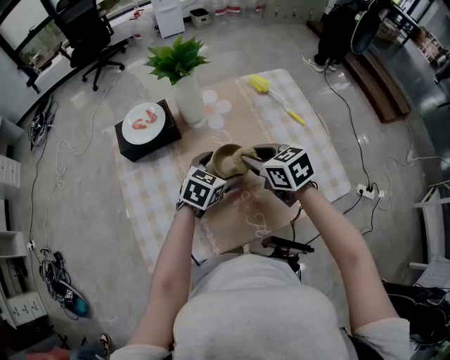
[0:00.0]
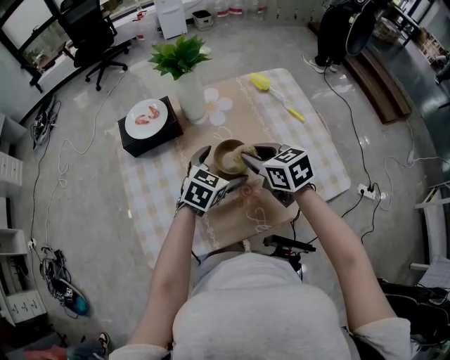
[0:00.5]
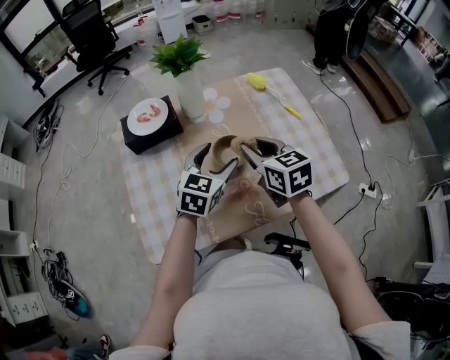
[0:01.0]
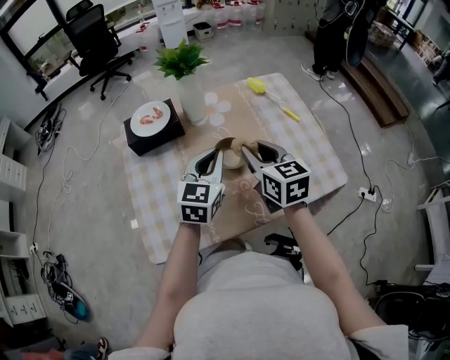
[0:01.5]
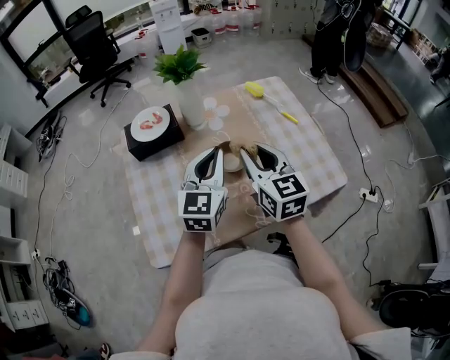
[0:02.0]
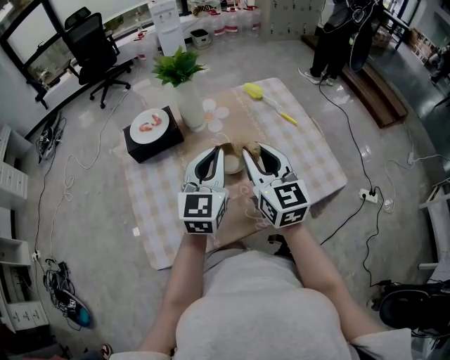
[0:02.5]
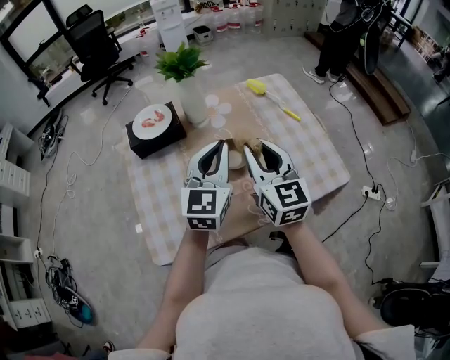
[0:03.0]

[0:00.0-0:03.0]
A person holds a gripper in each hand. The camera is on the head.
0:00.0 to 0:01.5: The right gripper heads upward, covering approximately 5 cm, and swivels roughly 30 degrees, while the left gripper shifts about 10 cm upward, rotates roughly 30 degrees, and closes up.
0:01.5 to 0:03.0: The right gripper changes place by roughly 5 cm, while the left gripper moves upward, approximately 5 cm.

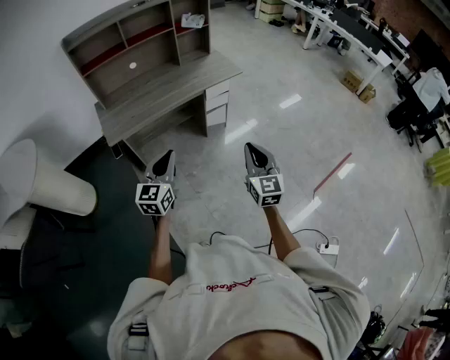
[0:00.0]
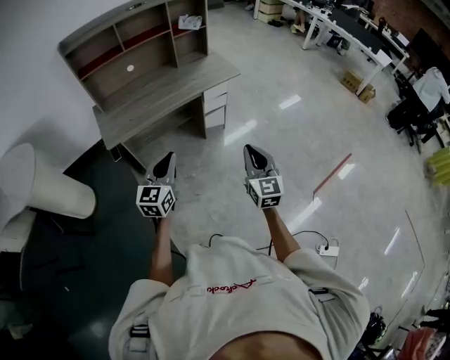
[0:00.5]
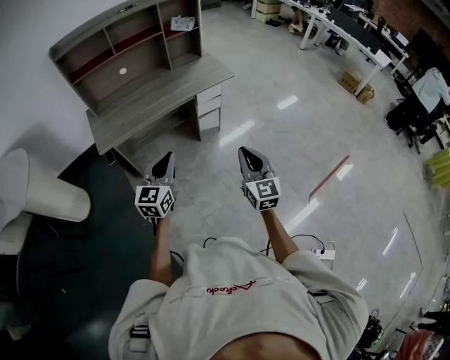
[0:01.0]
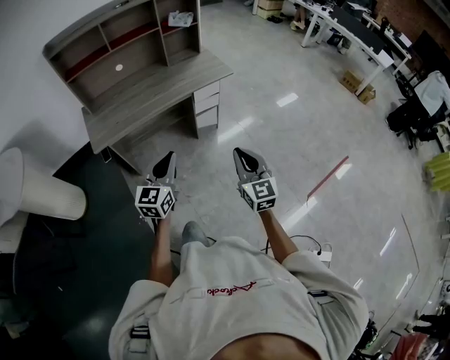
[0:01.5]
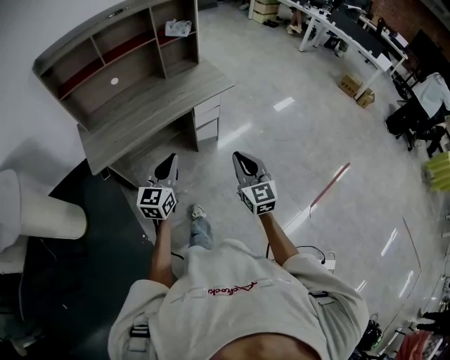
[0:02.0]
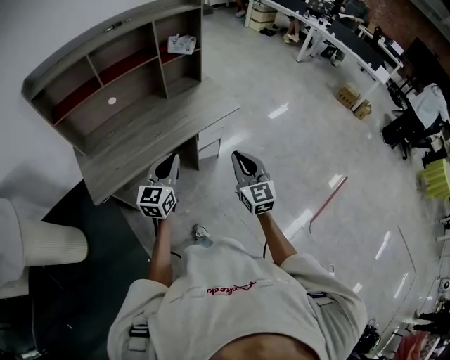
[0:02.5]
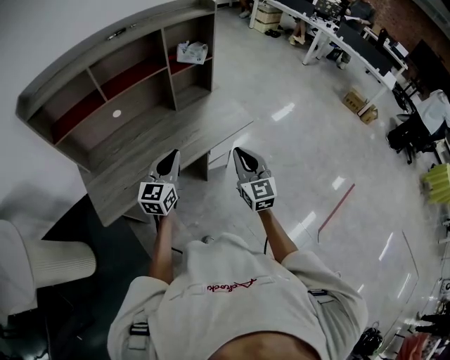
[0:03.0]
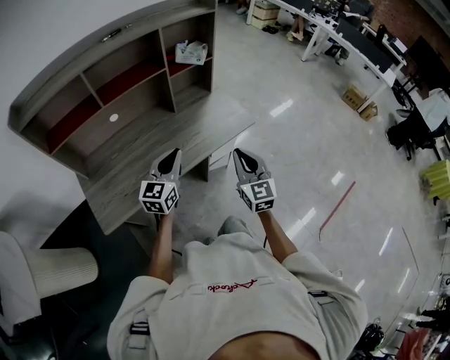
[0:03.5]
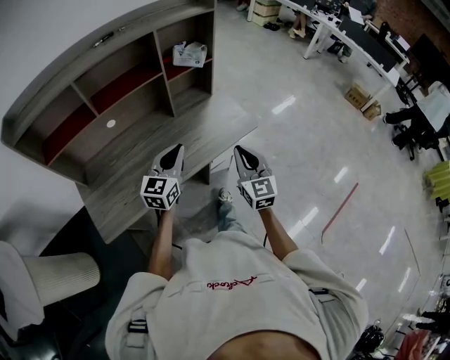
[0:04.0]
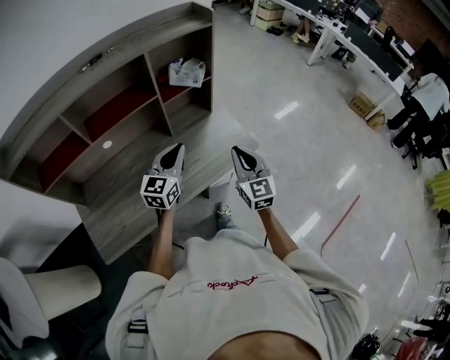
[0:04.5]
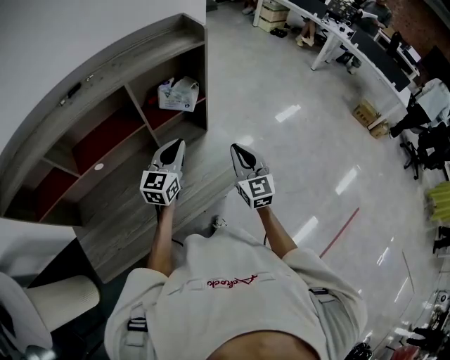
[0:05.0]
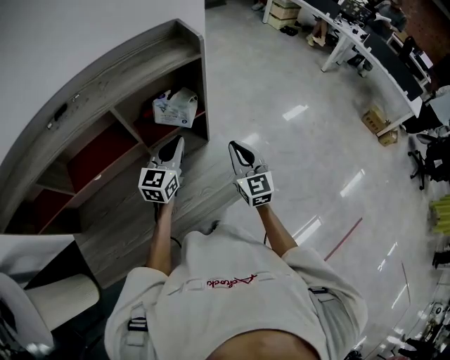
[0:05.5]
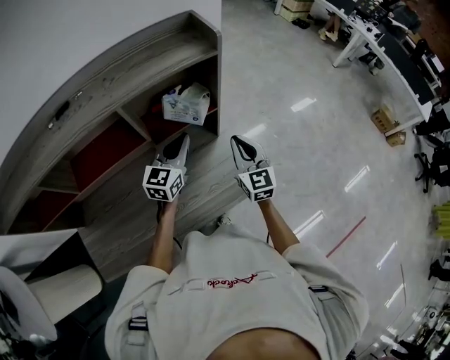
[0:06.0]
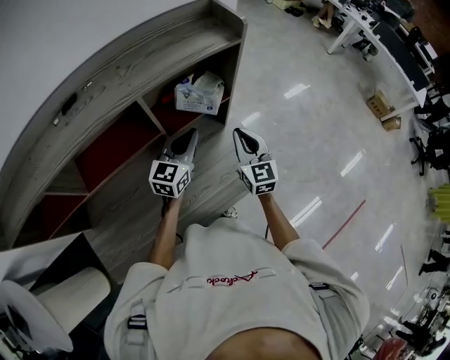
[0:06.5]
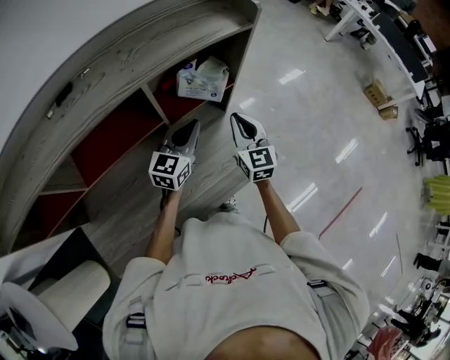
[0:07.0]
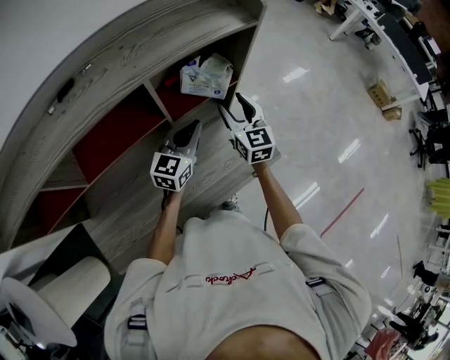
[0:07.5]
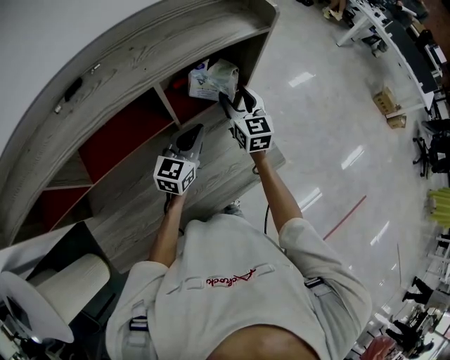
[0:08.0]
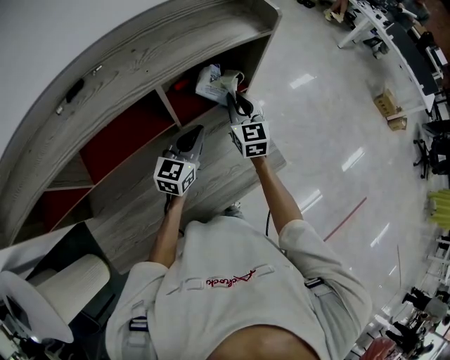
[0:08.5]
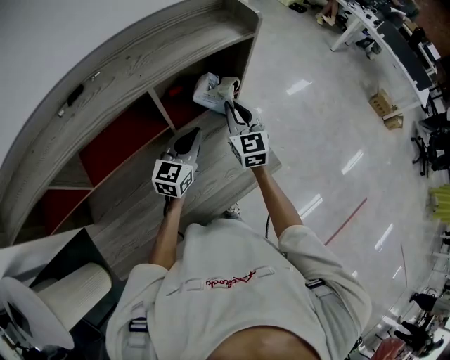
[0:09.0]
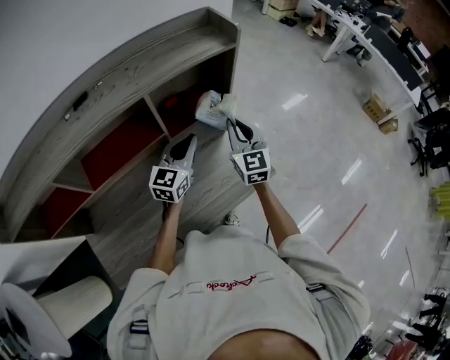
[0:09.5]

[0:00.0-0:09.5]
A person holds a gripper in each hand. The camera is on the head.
0:00.0 to 0:02.0: Both grippers travel together forward, roughly 15 cm.
0:02.0 to 0:04.0: The grippers both shift forward by roughly 35 cm.
0:04.0 to 0:05.5: The two grippers go about 35 cm forward.
0:05.5 to 0:07.5: The left gripper shifts some 10 cm to the left and downward. The right gripper heads to the left and forward, covering roughly 15 cm, and opens its fingers.
0:07.5 to 0:09.5: The right gripper heads upward, covering some 5 cm, and closes.

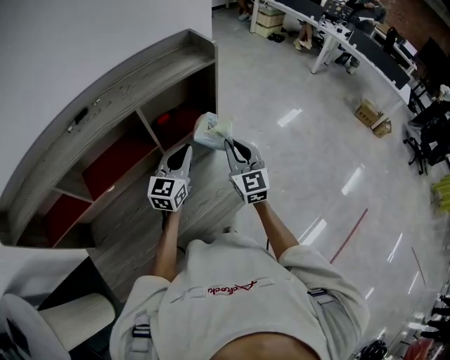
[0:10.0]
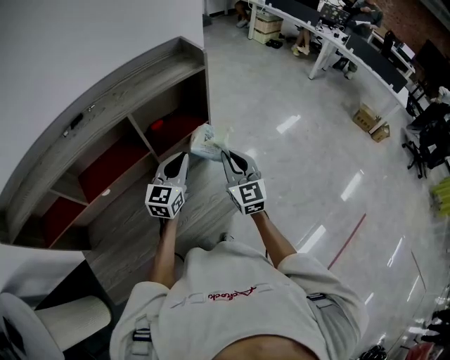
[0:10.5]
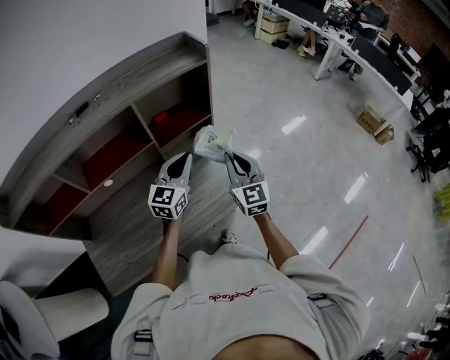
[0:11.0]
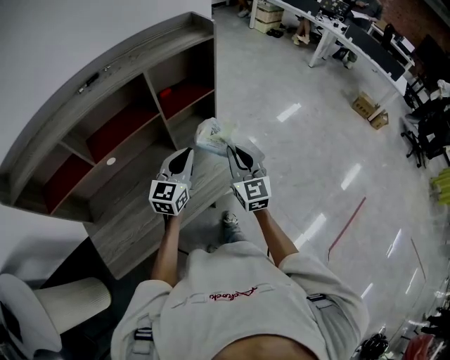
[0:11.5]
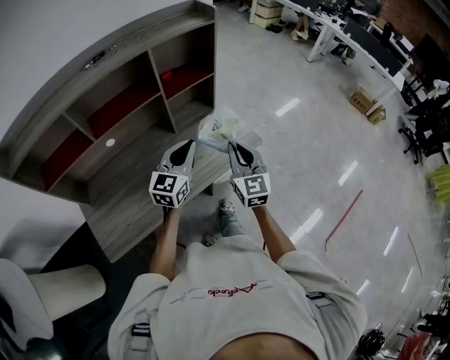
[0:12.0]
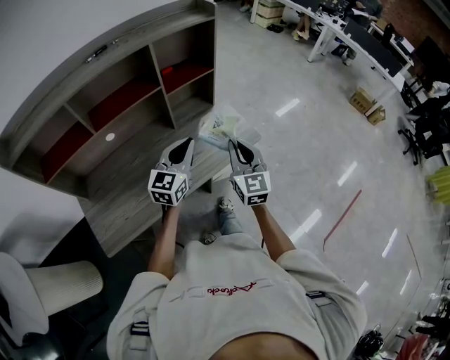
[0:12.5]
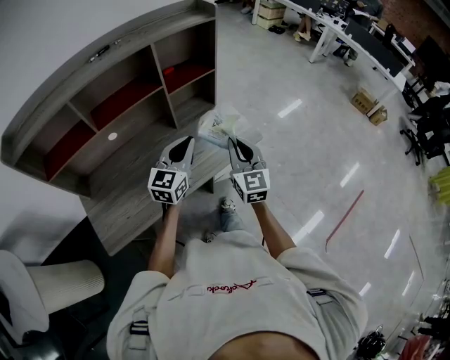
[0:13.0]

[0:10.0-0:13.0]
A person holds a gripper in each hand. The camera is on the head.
0:10.0 to 0:11.5: Both grippers move backward, about 15 cm.
0:11.5 to 0:13.0: The two grippers go approximately 10 cm backward.

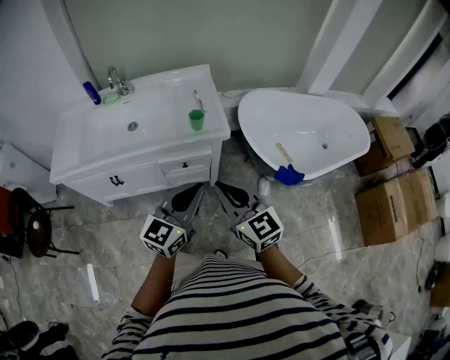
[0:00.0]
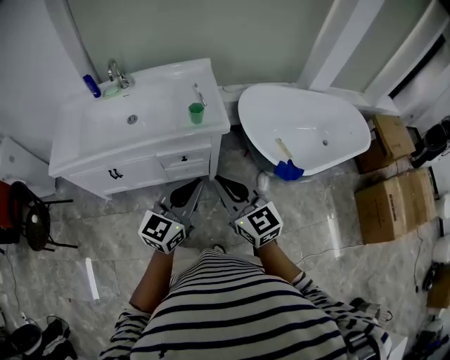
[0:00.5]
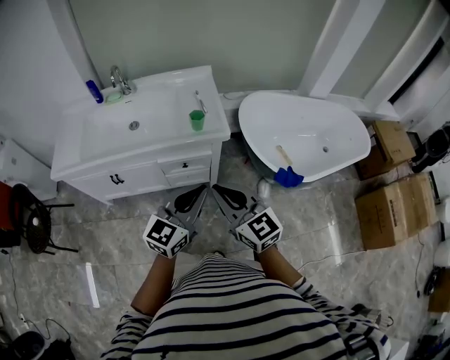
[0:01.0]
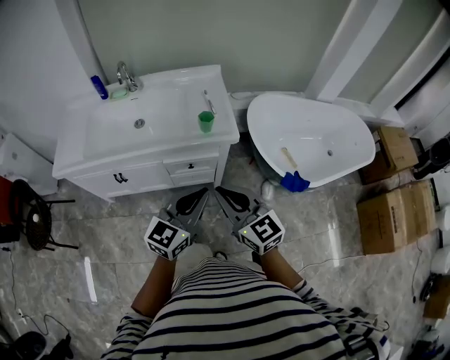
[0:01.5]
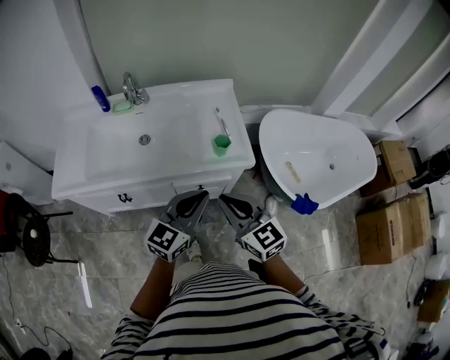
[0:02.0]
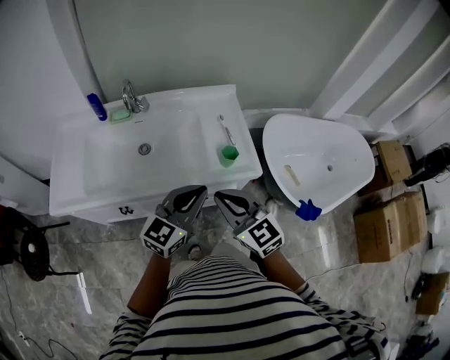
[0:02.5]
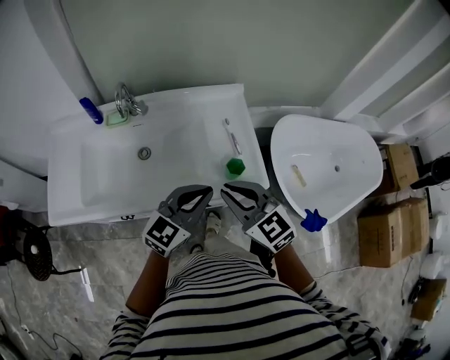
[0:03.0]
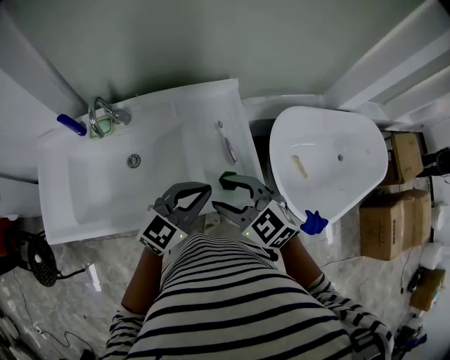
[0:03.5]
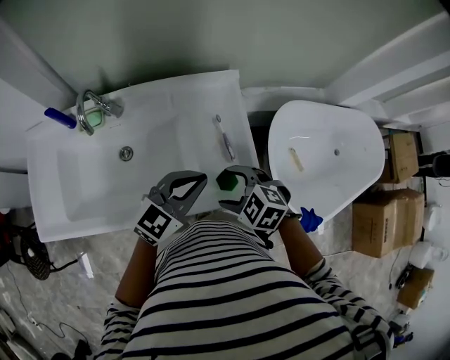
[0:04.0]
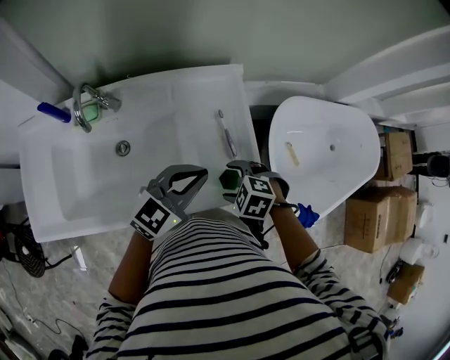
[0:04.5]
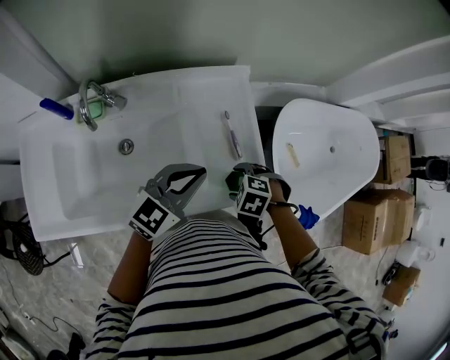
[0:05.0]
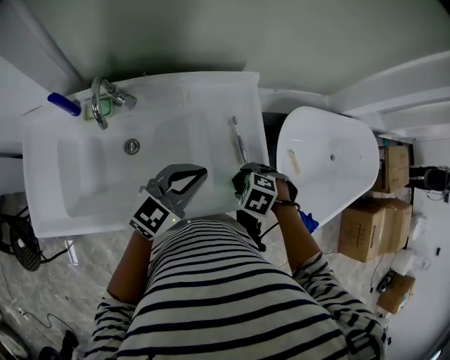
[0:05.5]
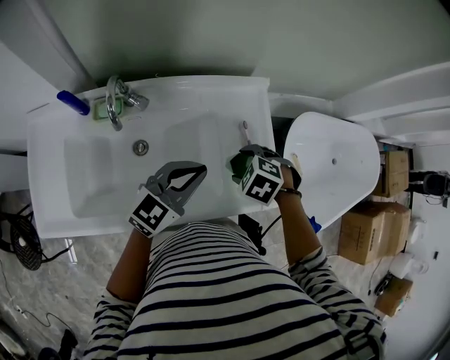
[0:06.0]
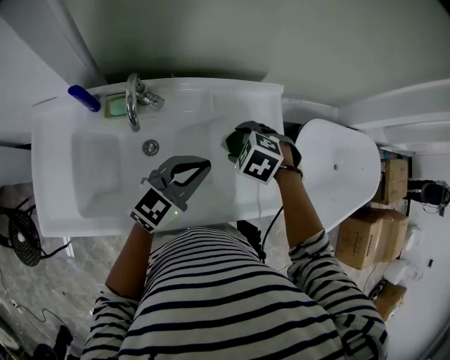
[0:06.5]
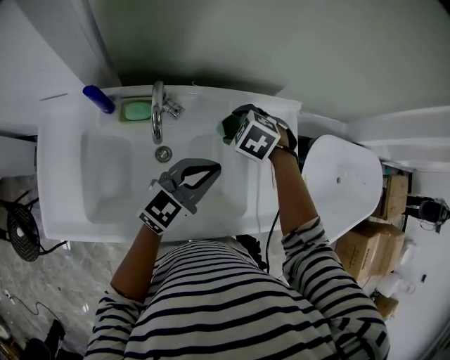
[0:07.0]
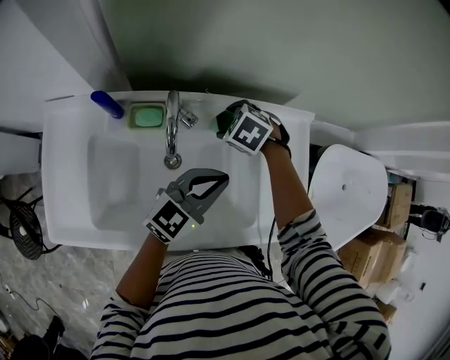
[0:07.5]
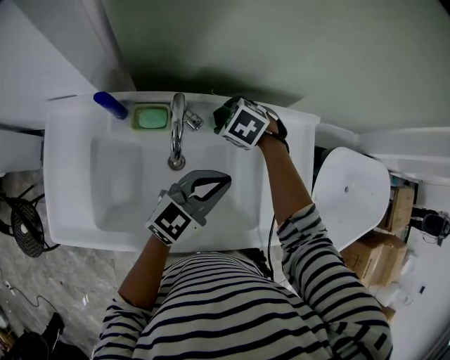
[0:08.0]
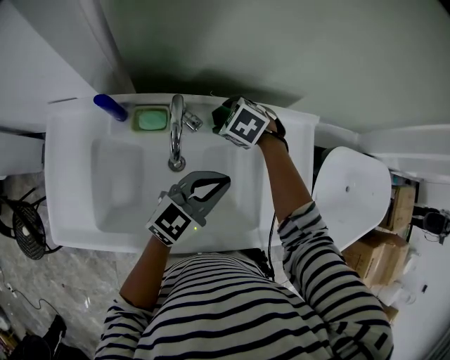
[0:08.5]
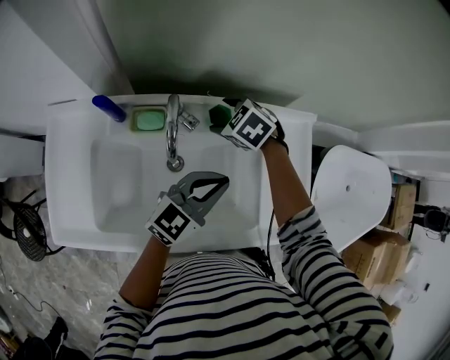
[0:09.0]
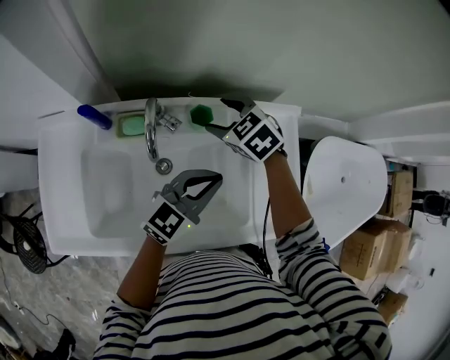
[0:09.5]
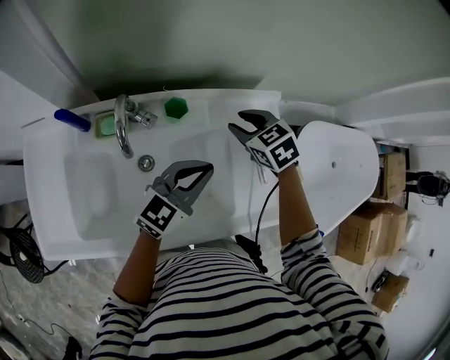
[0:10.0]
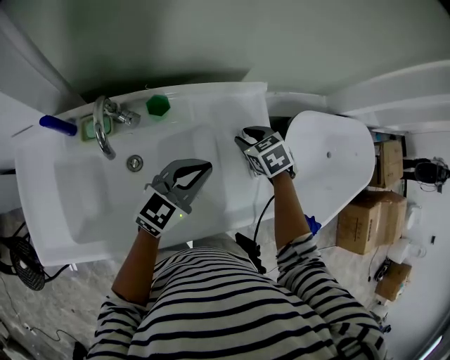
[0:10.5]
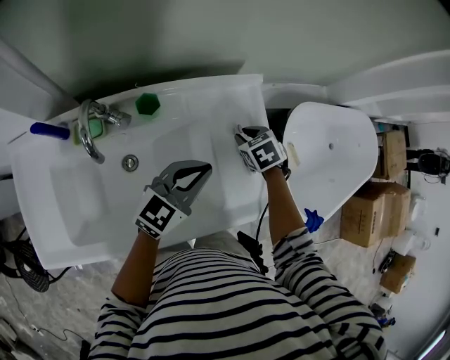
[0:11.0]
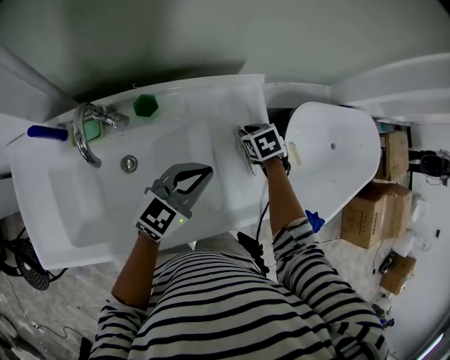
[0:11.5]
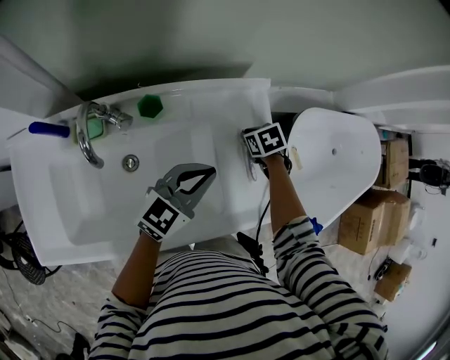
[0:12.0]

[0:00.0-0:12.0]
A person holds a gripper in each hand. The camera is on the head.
0:00.0 to 0:02.0: The two grippers go about 15 cm forward and to the left.
0:02.0 to 0:04.0: The left gripper travels forward by about 25 cm. Meanwhile the right gripper shifts some 25 cm forward and downward, tilts its fingers approximately 40 degrees downward, and opens up.
0:04.0 to 0:06.0: The left gripper moves some 10 cm. The right gripper travels downward and back again, some 10 cm each way, and swivels some 20 degrees.
0:06.0 to 0:08.0: The left gripper ends up roughly 10 cm from where it was, while the right gripper moves about 30 cm.
0:08.0 to 0:10.0: The right gripper moves to the right and upward, roughly 20 cm, rotates approximately 30 degrees, and closes its fingers, while the left gripper travels to the right by roughly 5 cm.
0:10.0 to 0:12.0: The left gripper moves to the right, about 5 cm; the right gripper moves downward and to the right, roughly 20 cm, and turns by about 30 degrees.
